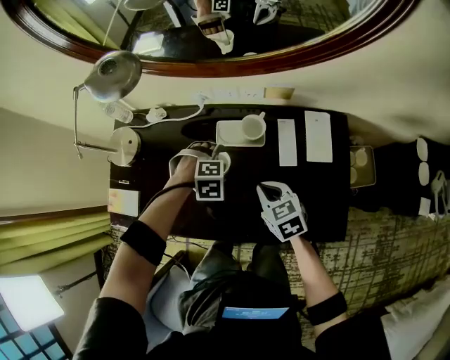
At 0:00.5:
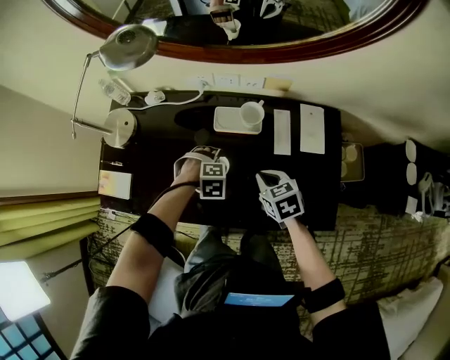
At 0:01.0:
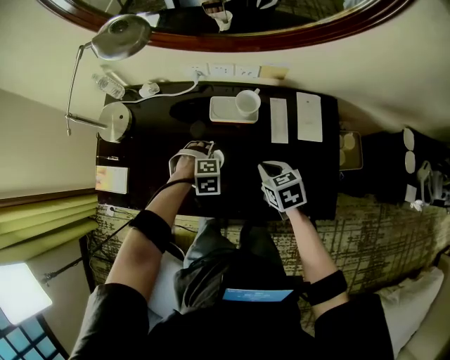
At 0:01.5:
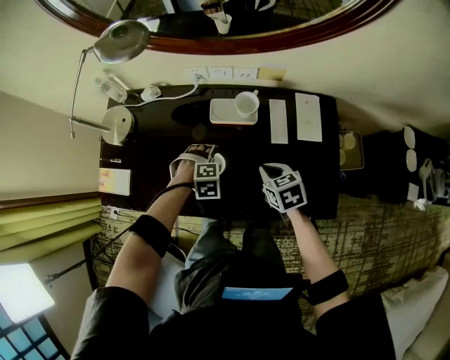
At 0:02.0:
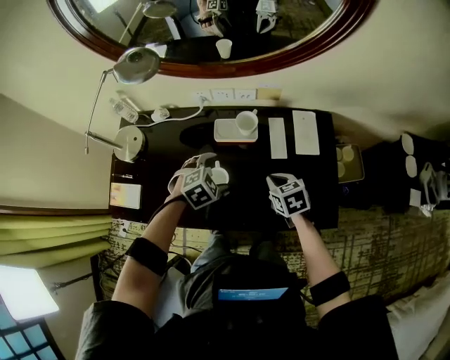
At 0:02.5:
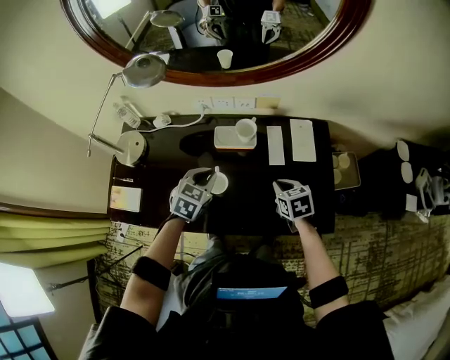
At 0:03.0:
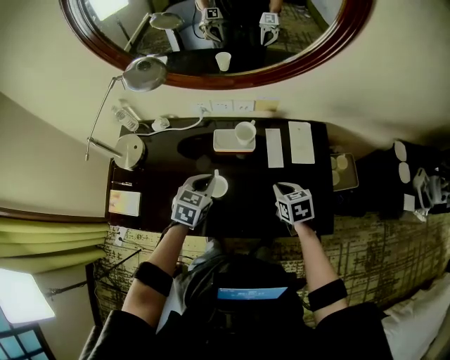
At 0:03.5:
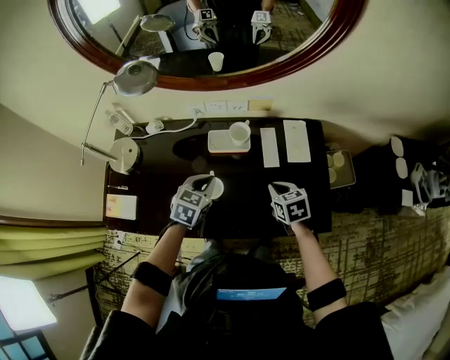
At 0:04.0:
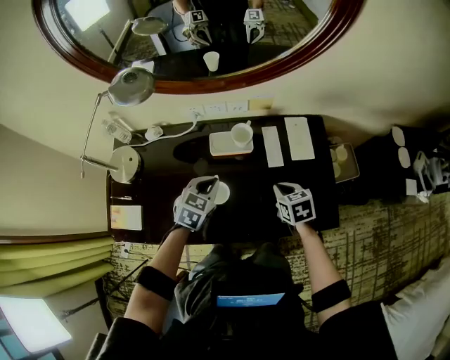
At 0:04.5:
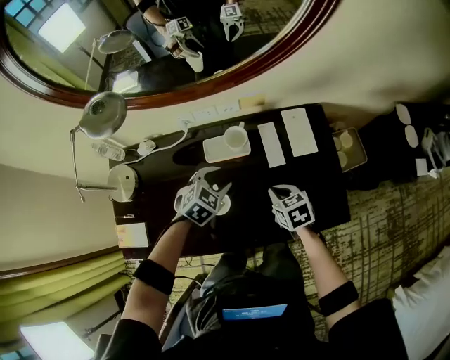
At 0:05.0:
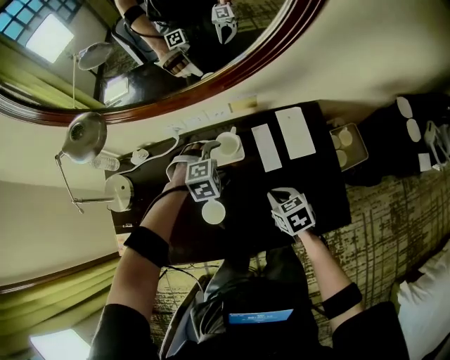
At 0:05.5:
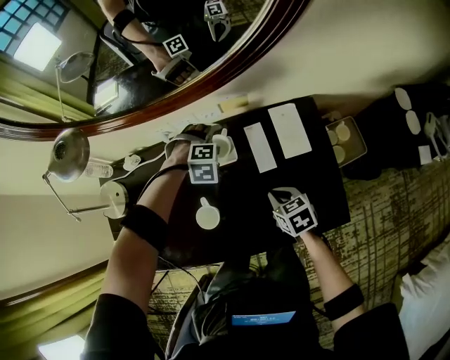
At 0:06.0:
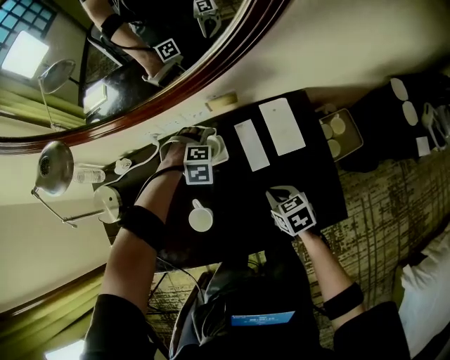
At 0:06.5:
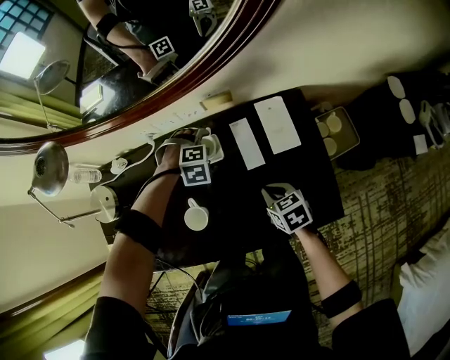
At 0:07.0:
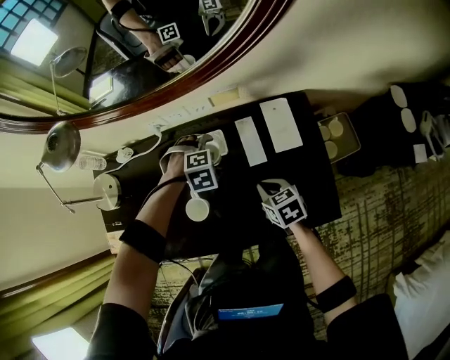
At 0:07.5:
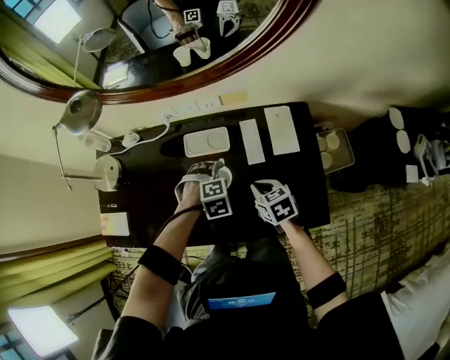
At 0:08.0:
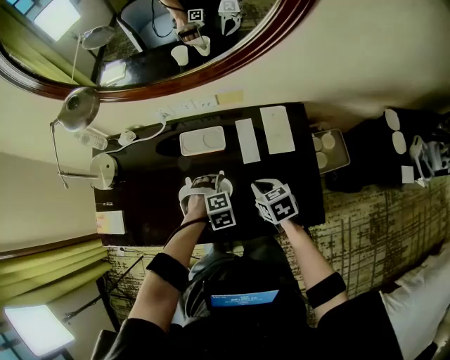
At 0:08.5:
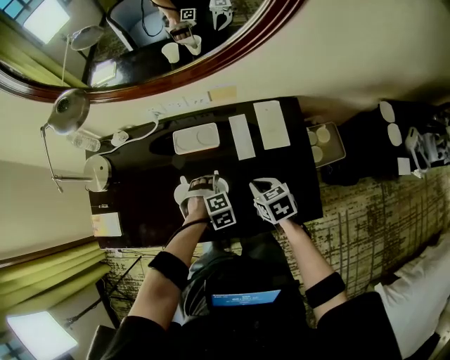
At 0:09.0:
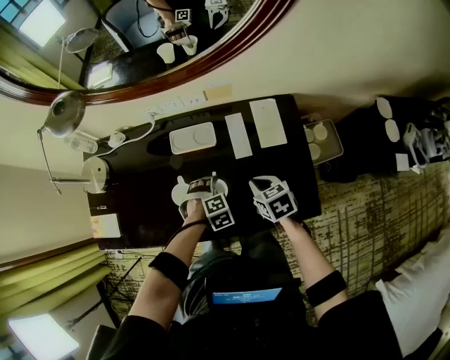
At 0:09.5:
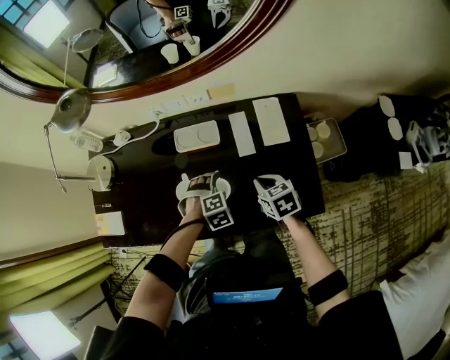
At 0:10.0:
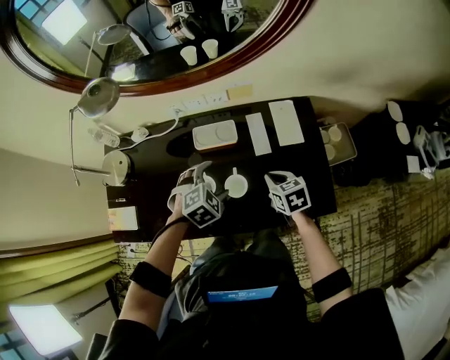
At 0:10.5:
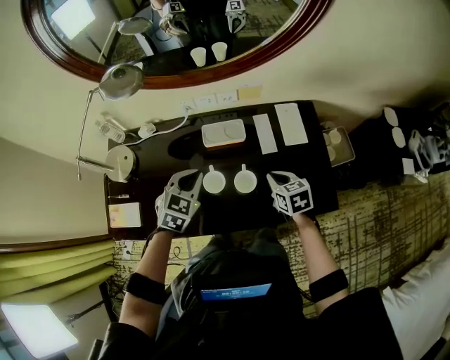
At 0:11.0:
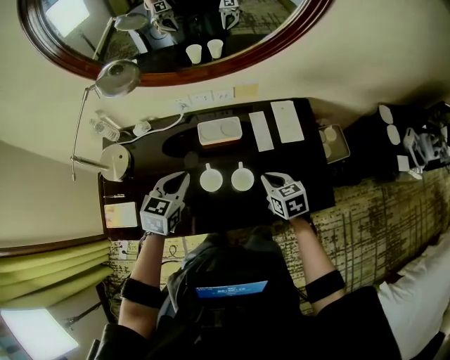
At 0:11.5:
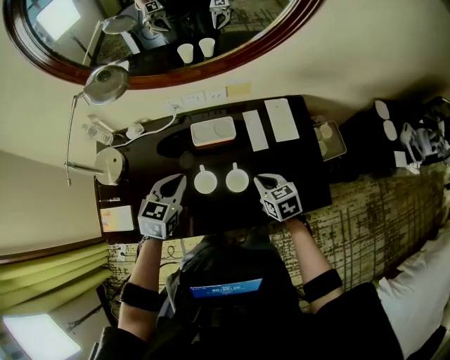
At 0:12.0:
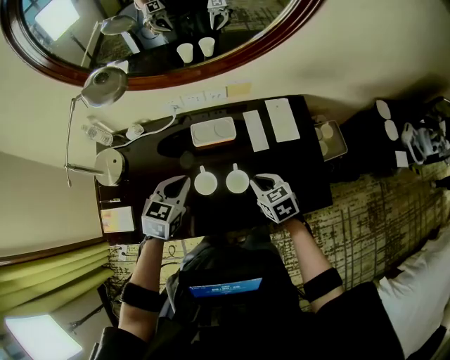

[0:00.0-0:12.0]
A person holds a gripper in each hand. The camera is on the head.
0:00.0 to 0:02.0: The left gripper ends up approximately 10 cm from where it was, and turns by roughly 30 degrees; the right gripper moves approximately 5 cm.
0:02.0 to 0:04.0: The left gripper changes place by approximately 5 cm, turns by about 30 degrees, and closes its fingers.
0:04.0 to 0:06.0: The left gripper moves approximately 25 cm, rotates around the line of its fingers by approximately 70 degrees, clockwise from behind, and opens up. Meanwhile the right gripper heads downward, covering roughly 5 cm.
0:06.0 to 0:08.0: The left gripper changes place by approximately 20 cm, and swivels about 20 degrees.
0:08.0 to 0:10.0: The left gripper goes roughly 10 cm upward, and changes its angle by roughly 20 degrees.
0:10.0 to 0:12.0: The right gripper heads to the left, covering approximately 5 cm. Meanwhile the left gripper goes about 15 cm to the left and upward, swivels roughly 40 degrees, and closes its fingers.

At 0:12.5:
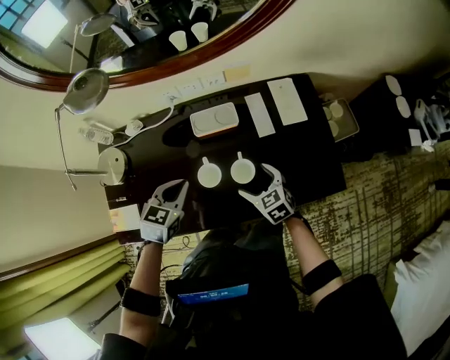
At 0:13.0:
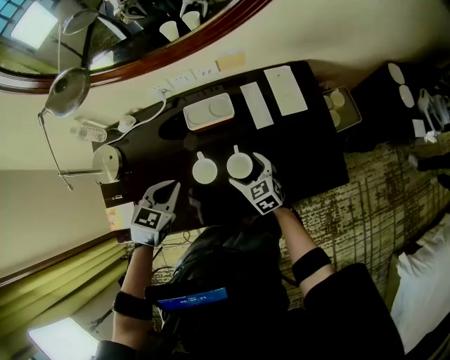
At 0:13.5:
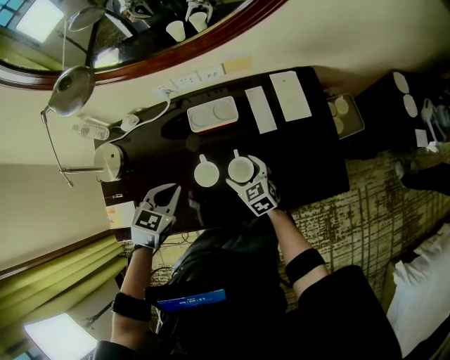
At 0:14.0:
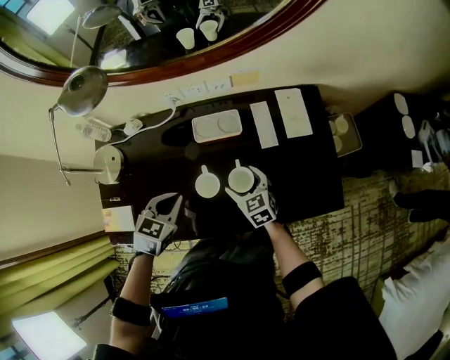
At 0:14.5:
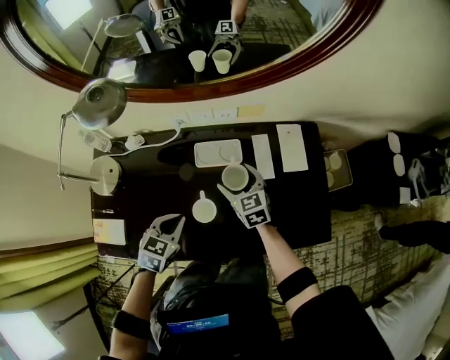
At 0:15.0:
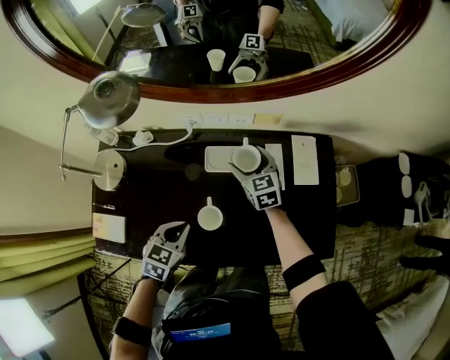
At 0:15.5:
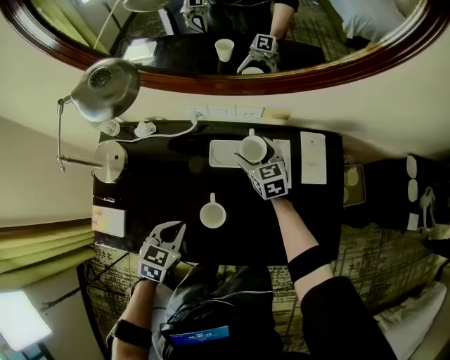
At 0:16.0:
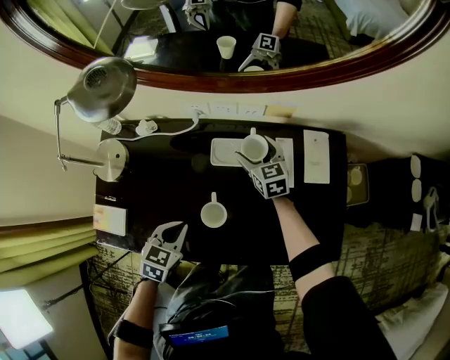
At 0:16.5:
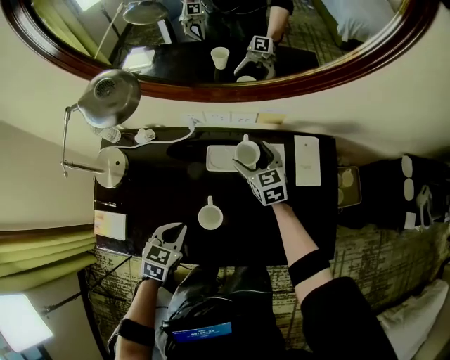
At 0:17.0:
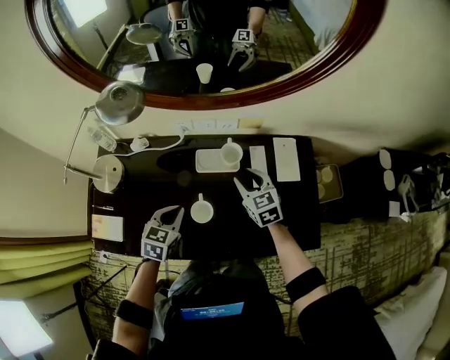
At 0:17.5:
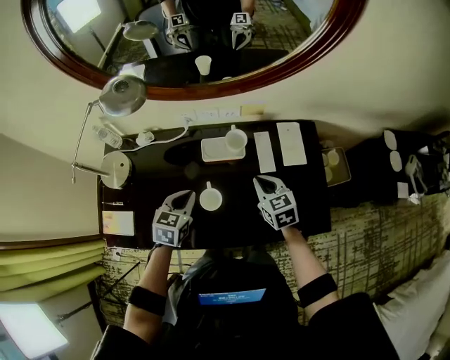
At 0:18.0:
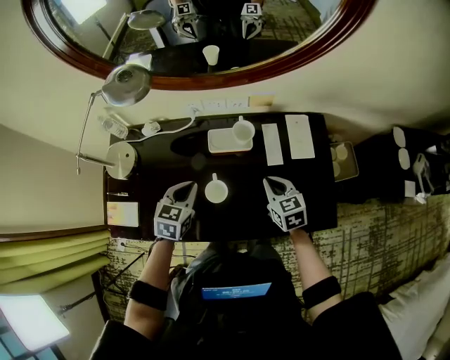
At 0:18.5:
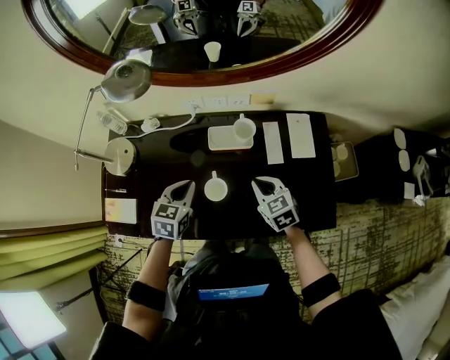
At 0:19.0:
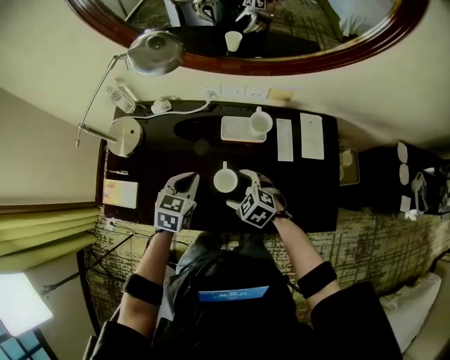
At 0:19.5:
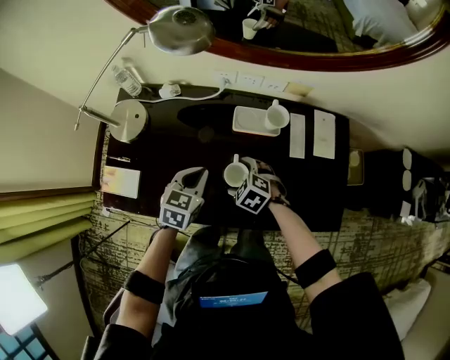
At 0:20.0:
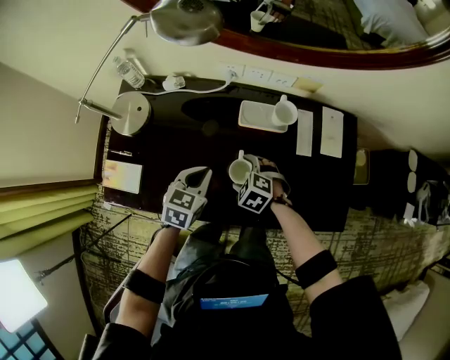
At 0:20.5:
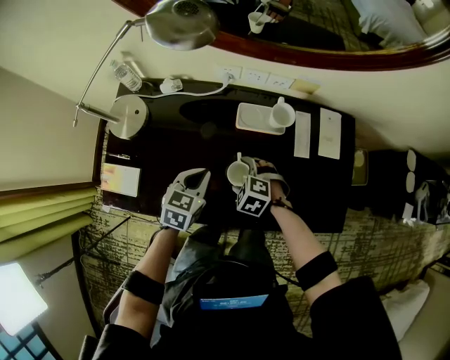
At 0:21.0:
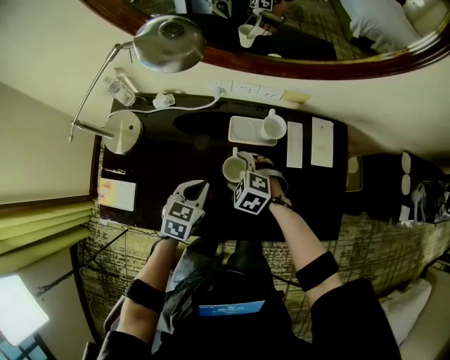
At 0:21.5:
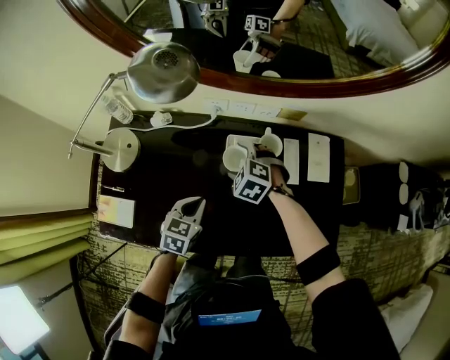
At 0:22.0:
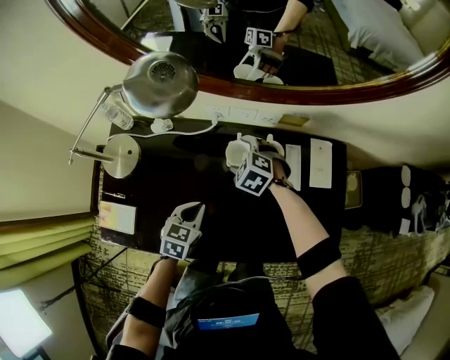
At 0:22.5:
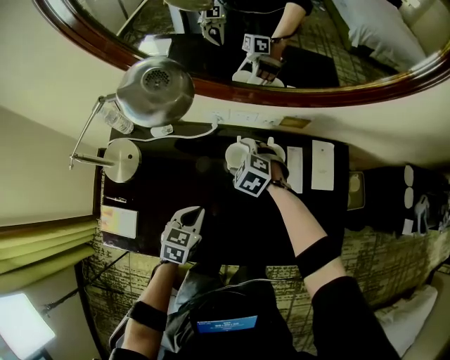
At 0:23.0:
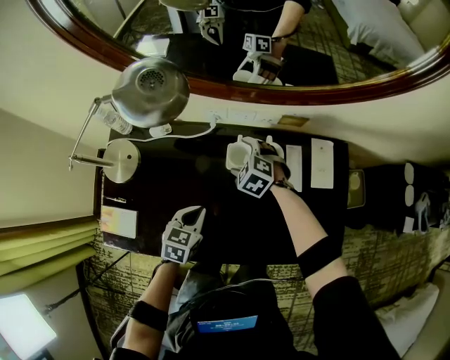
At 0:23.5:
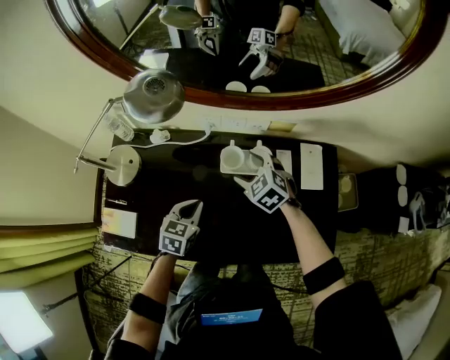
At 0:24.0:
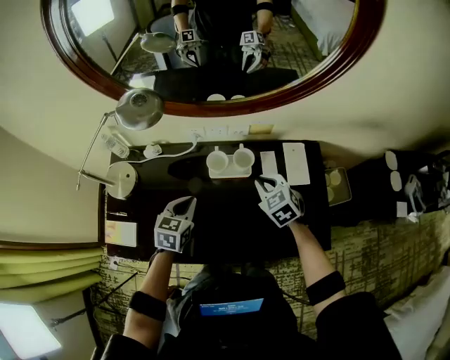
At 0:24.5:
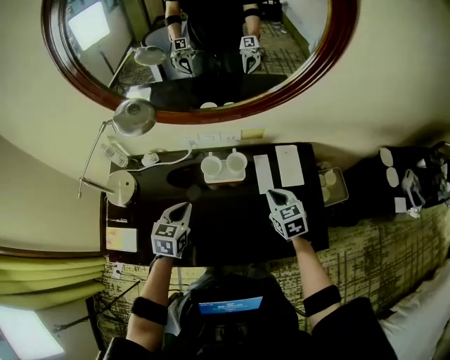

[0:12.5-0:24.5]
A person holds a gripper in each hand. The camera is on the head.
0:12.5 to 0:14.5: The right gripper heads forward, covering approximately 15 cm.
0:14.5 to 0:16.5: The right gripper travels forward by approximately 10 cm.
0:16.5 to 0:18.5: The right gripper travels backward by approximately 20 cm, and closes. Meanwhile the left gripper moves upward, about 5 cm.
0:18.5 to 0:20.5: The right gripper is displaced to the left and downward by approximately 20 cm, rotates around the line of its fingers by about 40 degrees, counterclockwise from behind, and opens its fingers. The left gripper goes some 5 cm downward.
0:20.5 to 0:22.5: The right gripper travels forward by approximately 20 cm.
0:22.5 to 0:24.5: The right gripper heads to the right, backward and upward, covering approximately 30 cm, rotates around the line of its fingers by some 40 degrees, clockwise from behind, and closes; the left gripper goes some 10 cm upward.

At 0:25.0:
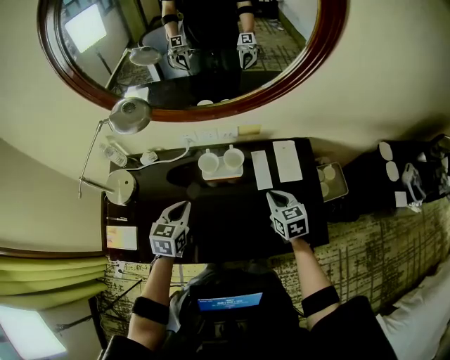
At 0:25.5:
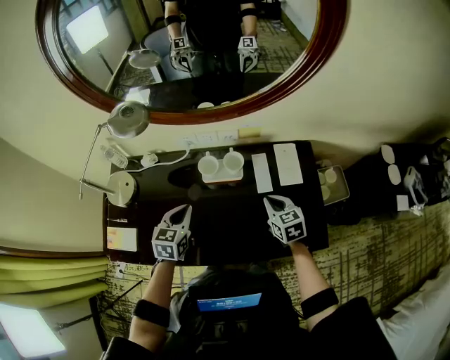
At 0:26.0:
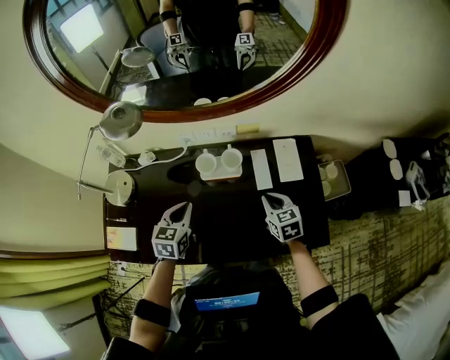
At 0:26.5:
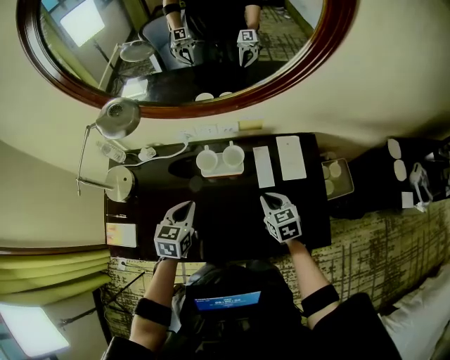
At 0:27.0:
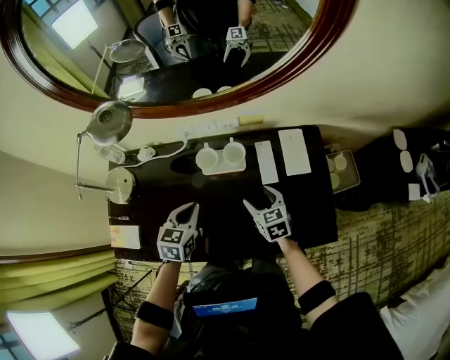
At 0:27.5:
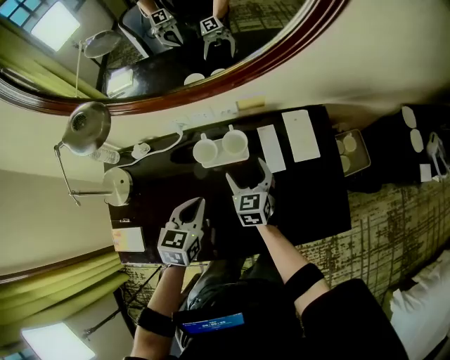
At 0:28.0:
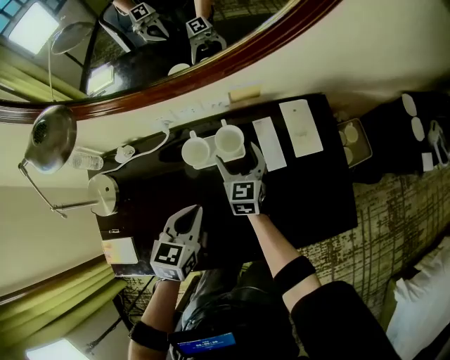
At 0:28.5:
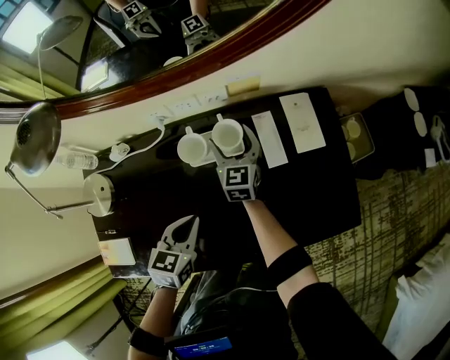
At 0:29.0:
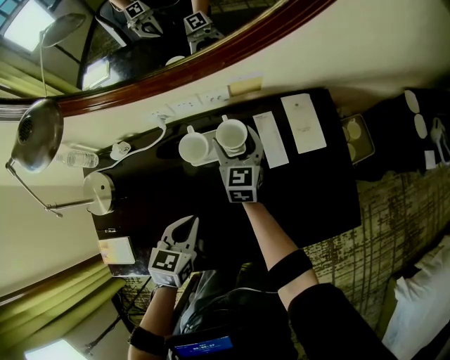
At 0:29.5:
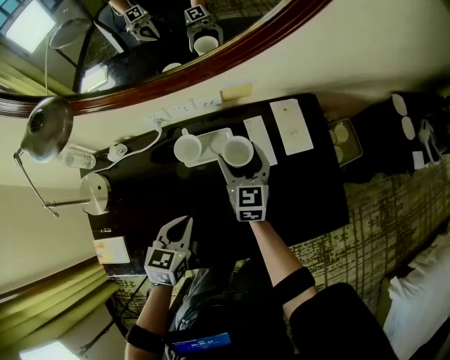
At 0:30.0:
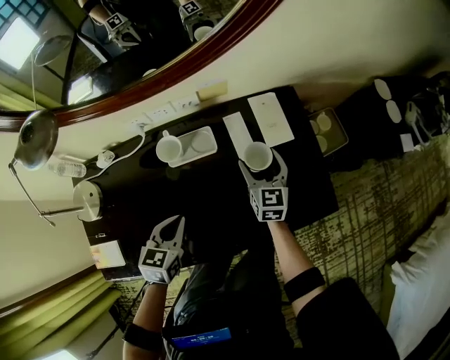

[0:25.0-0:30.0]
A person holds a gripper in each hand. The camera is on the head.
0:25.0 to 0:27.5: The right gripper goes about 15 cm to the left, forward and downward, and opens its fingers, while the left gripper goes about 5 cm to the right.
0:27.5 to 0:30.0: The left gripper is displaced downward by about 5 cm. Meanwhile the right gripper is displaced to the right by about 15 cm.
